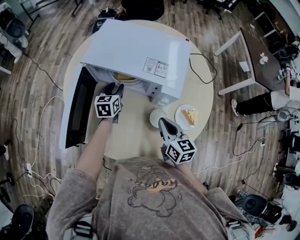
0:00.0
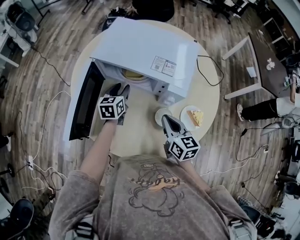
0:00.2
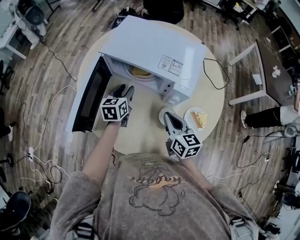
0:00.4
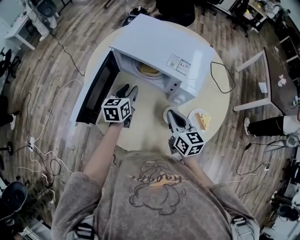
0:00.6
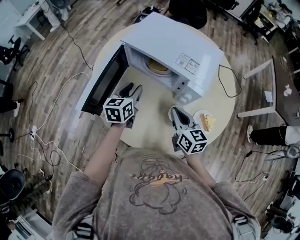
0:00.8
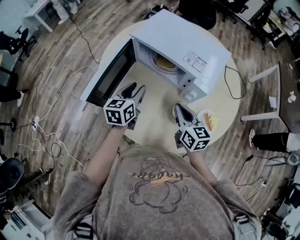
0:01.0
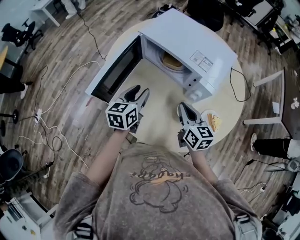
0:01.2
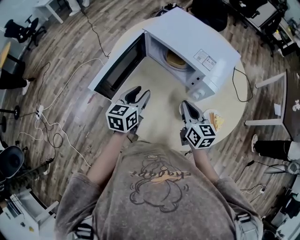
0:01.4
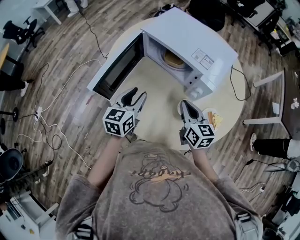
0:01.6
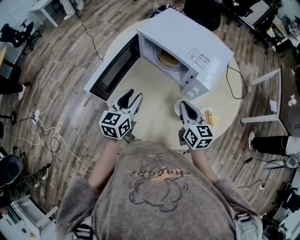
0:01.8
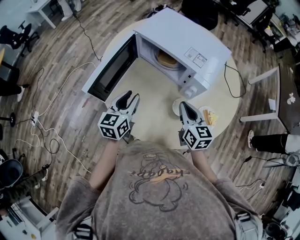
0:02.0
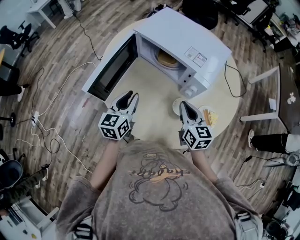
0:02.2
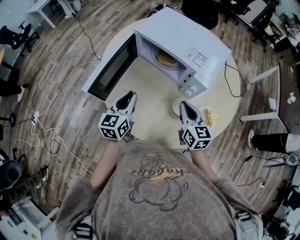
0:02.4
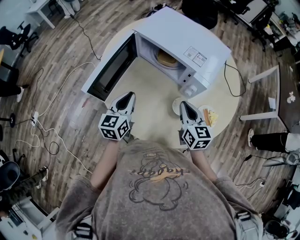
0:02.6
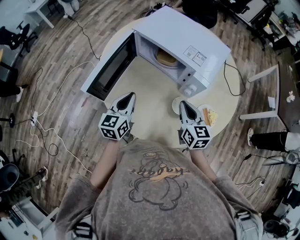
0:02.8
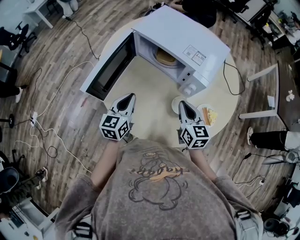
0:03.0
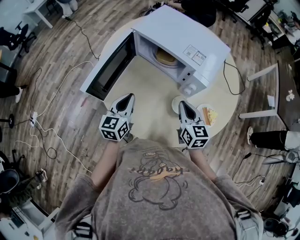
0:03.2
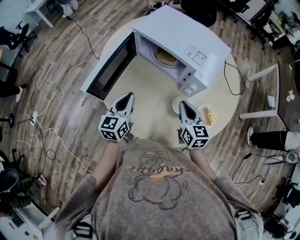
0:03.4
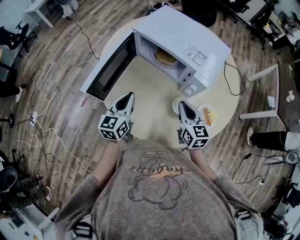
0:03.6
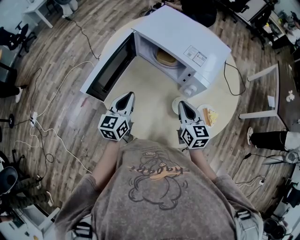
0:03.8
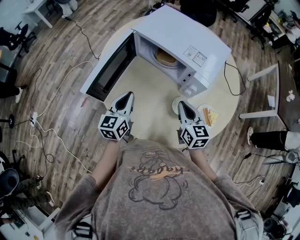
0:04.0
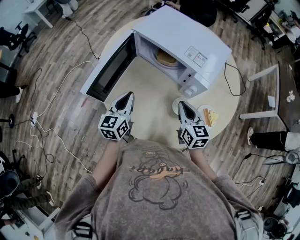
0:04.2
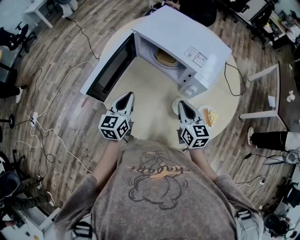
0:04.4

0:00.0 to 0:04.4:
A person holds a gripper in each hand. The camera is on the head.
0:00.0 to 0:01.4: The left gripper shifts approximately 20 cm backward and upward.
0:01.4 to 0:03.0: The left gripper closes.
0:03.0 to 0:04.4: The grippers stay close to where they were, moving slightly.

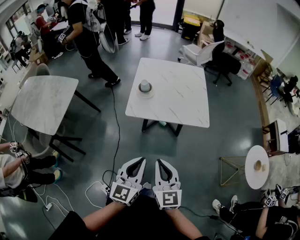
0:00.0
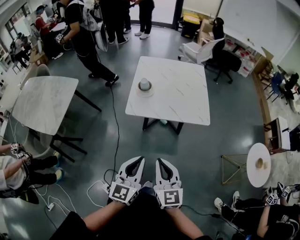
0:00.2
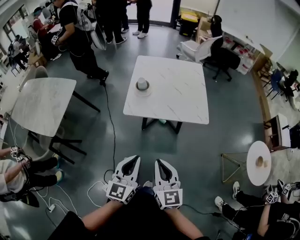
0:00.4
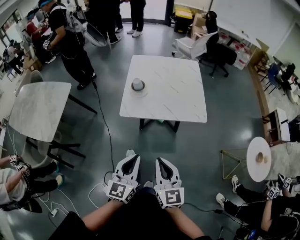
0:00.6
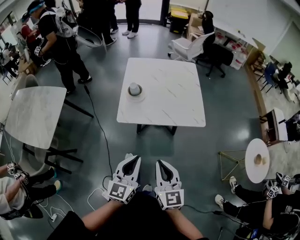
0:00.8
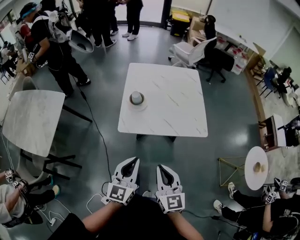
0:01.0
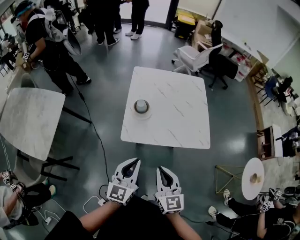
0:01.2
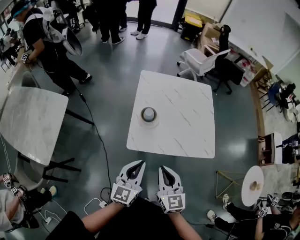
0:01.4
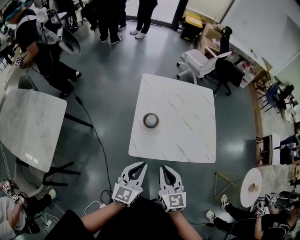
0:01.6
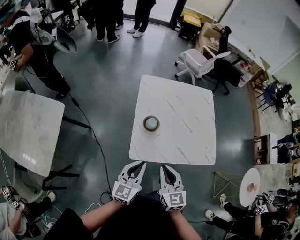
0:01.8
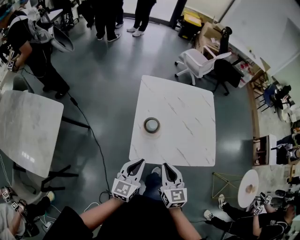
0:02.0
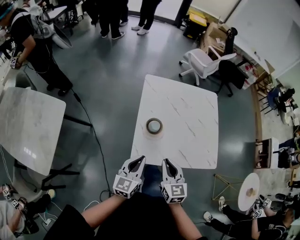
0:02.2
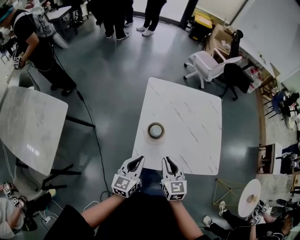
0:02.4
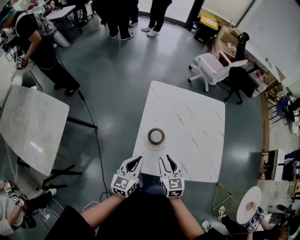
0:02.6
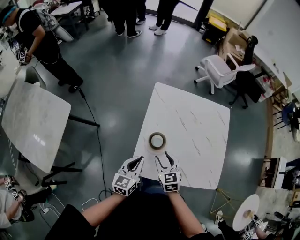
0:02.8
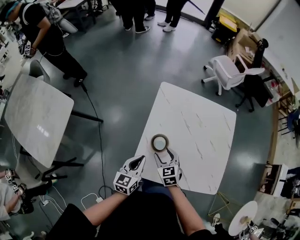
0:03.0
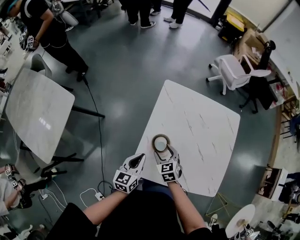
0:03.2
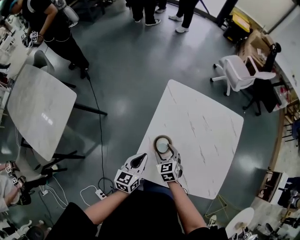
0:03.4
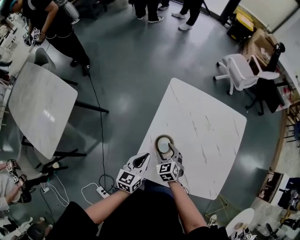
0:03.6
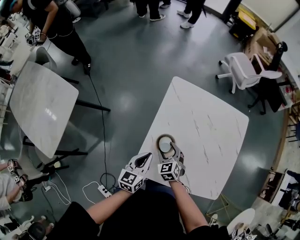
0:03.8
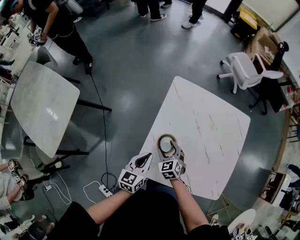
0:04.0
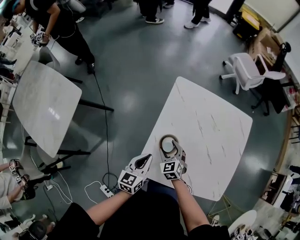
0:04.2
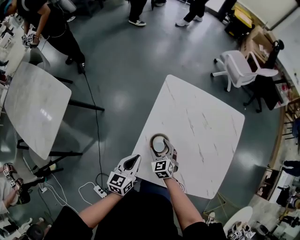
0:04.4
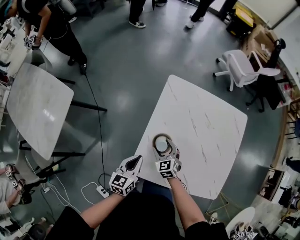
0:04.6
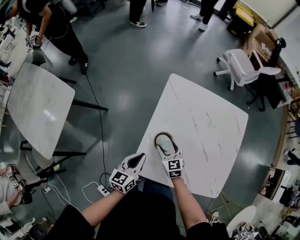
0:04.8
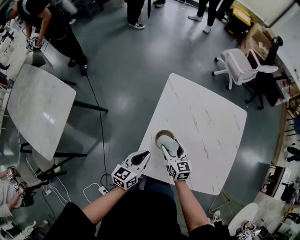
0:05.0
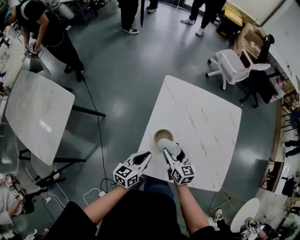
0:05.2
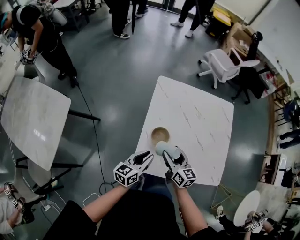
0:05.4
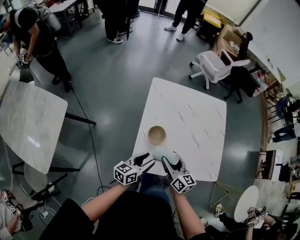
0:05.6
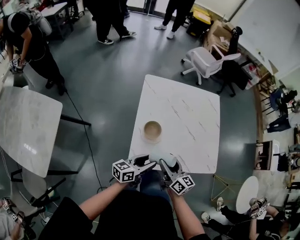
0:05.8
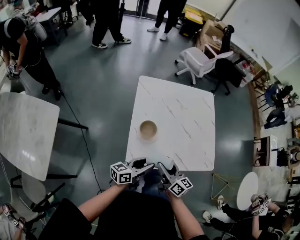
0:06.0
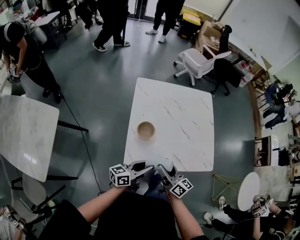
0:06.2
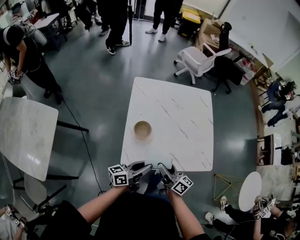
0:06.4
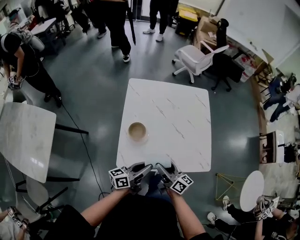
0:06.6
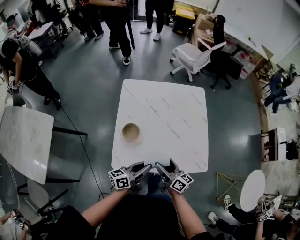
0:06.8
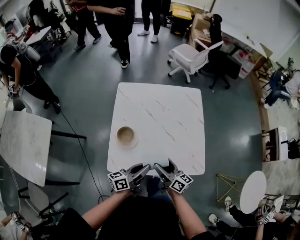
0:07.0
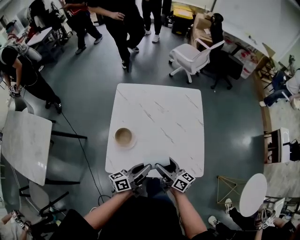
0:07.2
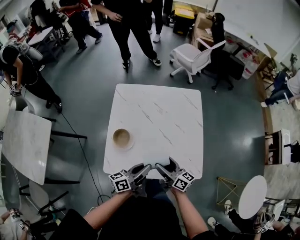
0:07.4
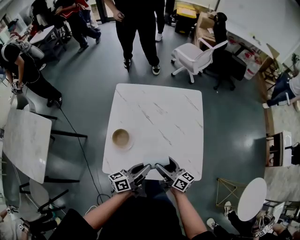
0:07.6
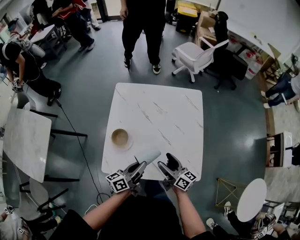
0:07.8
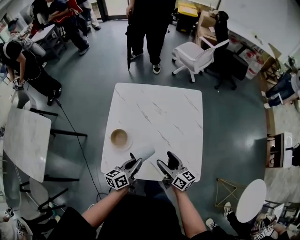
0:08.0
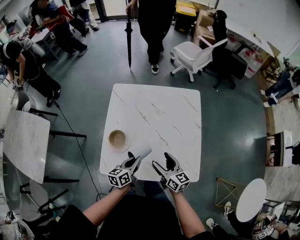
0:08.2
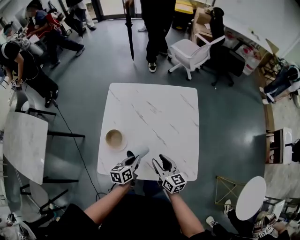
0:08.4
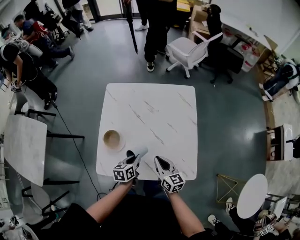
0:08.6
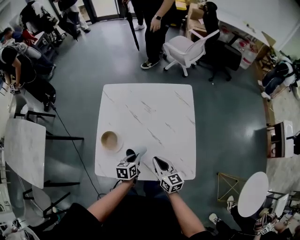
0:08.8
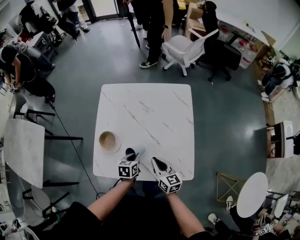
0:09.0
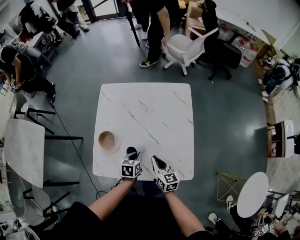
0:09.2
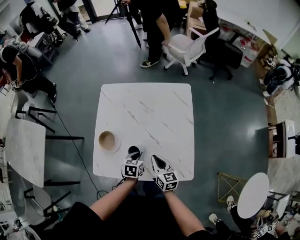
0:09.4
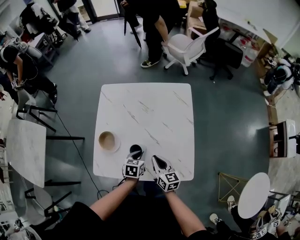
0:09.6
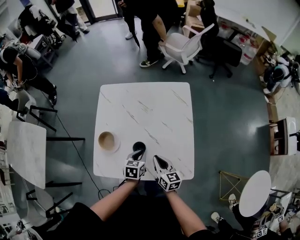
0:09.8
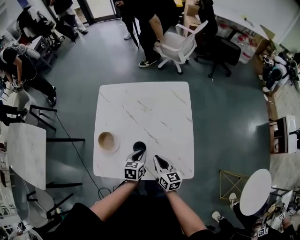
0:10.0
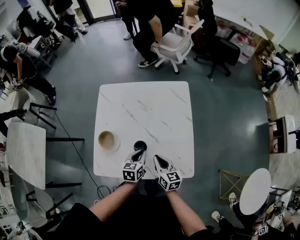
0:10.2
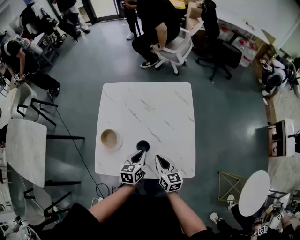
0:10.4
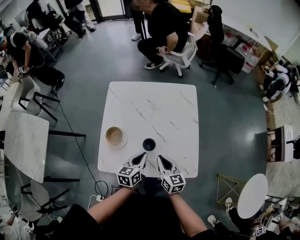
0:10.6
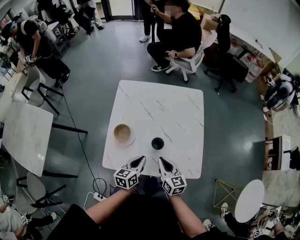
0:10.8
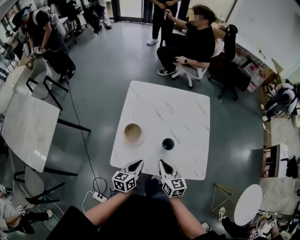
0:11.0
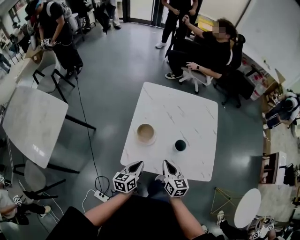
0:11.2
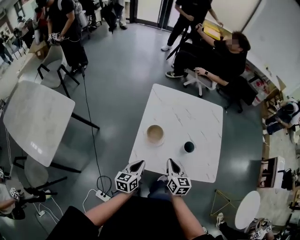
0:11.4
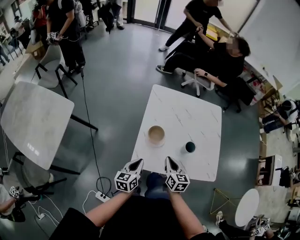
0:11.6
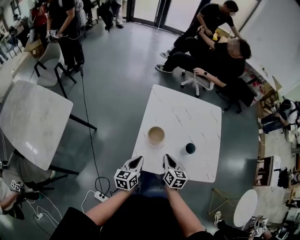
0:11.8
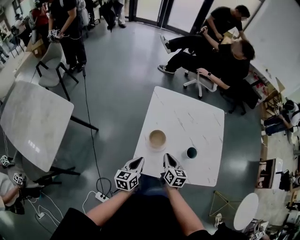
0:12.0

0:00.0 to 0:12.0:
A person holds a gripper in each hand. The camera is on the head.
0:00.0 to 0:01.6: Both grippers travel together forward, some 30 cm.
0:01.6 to 0:03.0: Both grippers move forward and downward, approximately 30 cm. The left gripper rotates roughly 20 degrees; the right gripper turns by roughly 30 degrees, and opens up.
0:03.0 to 0:04.4: The right gripper heads downward, covering some 10 cm.
0:04.4 to 0:06.0: The left gripper changes place by some 15 cm, swivels about 50 degrees, and opens up. Meanwhile the right gripper changes place by roughly 25 cm, and rolls clockwise, seen from behind, by some 60 degrees.
0:06.0 to 0:07.6: The two grippers go some 20 cm to the right and forward. The left gripper closes its fingers.
0:07.6 to 0:09.0: The left gripper shifts approximately 15 cm downward and forward, and tilts its fingers roughly 50 degrees downward; the right gripper moves downward, approximately 5 cm, swivels approximately 30 degrees, and closes.
0:09.0 to 0:10.4: The left gripper travels upward by about 5 cm.
0:10.4 to 0:12.0: The two grippers go roughly 30 cm to the left.

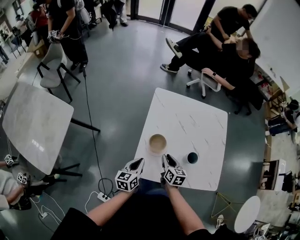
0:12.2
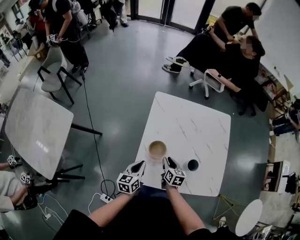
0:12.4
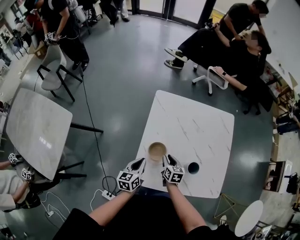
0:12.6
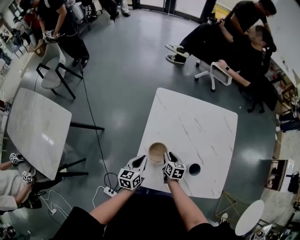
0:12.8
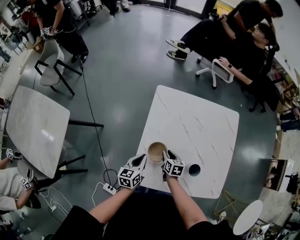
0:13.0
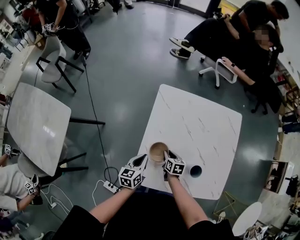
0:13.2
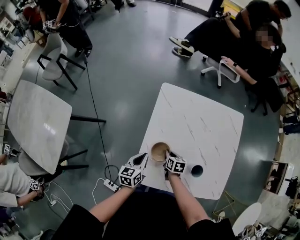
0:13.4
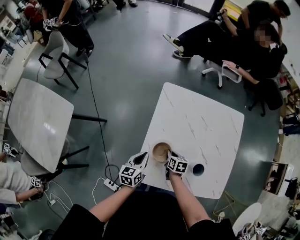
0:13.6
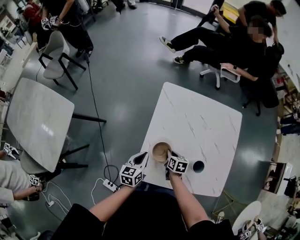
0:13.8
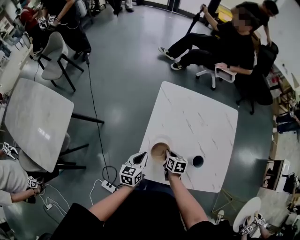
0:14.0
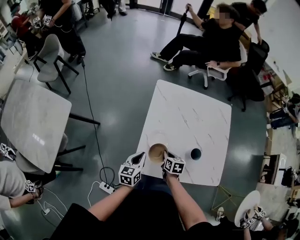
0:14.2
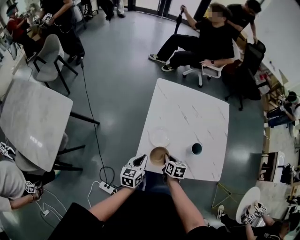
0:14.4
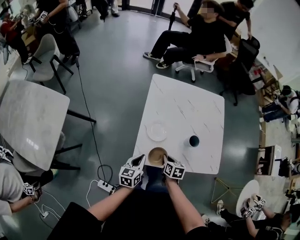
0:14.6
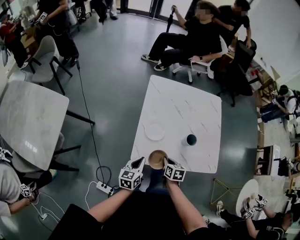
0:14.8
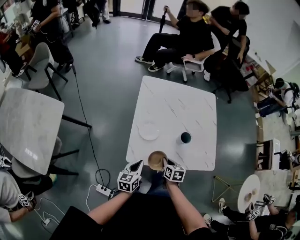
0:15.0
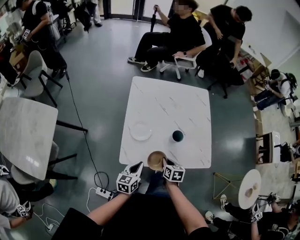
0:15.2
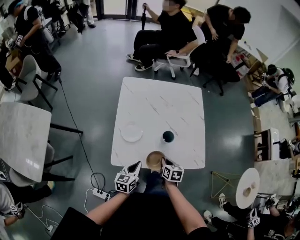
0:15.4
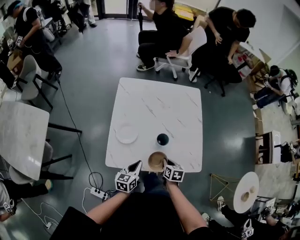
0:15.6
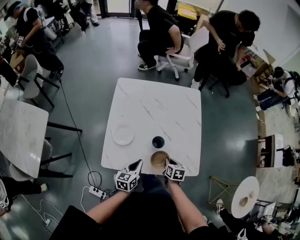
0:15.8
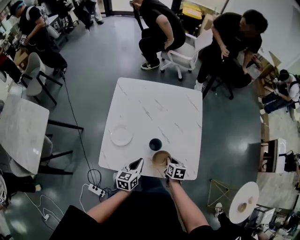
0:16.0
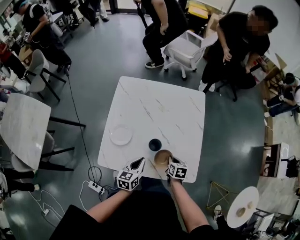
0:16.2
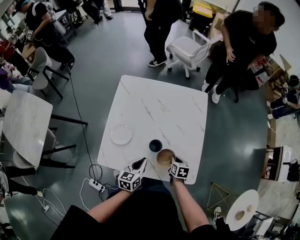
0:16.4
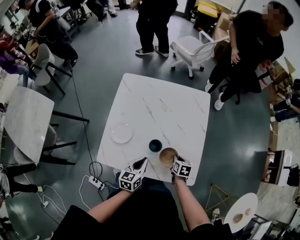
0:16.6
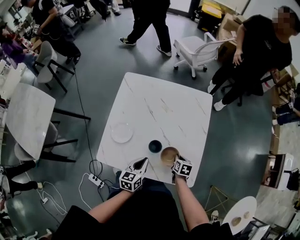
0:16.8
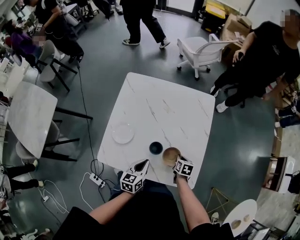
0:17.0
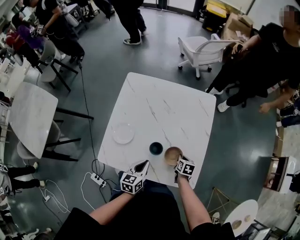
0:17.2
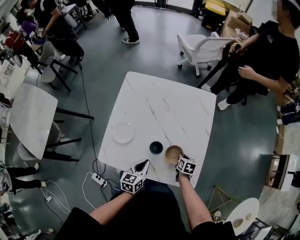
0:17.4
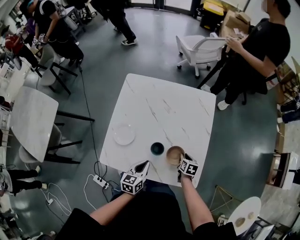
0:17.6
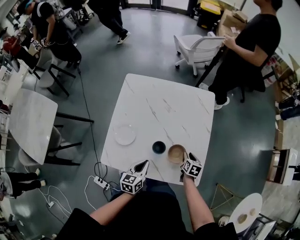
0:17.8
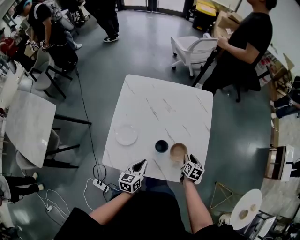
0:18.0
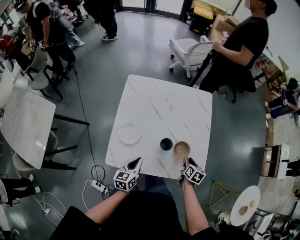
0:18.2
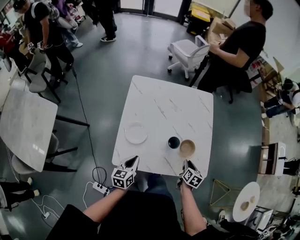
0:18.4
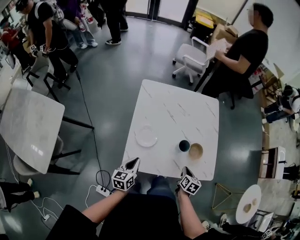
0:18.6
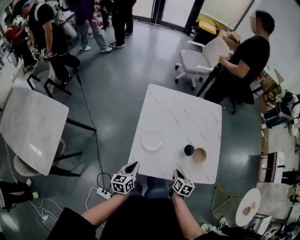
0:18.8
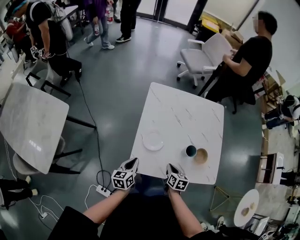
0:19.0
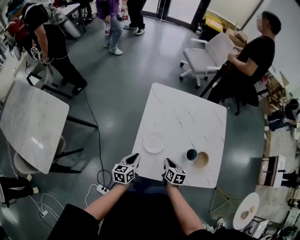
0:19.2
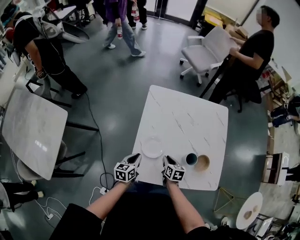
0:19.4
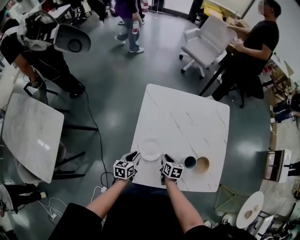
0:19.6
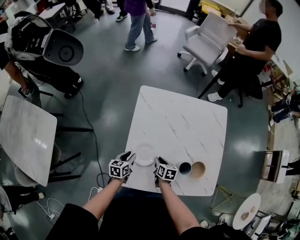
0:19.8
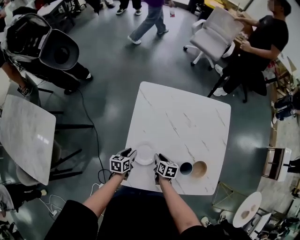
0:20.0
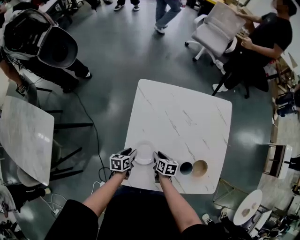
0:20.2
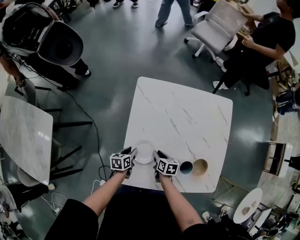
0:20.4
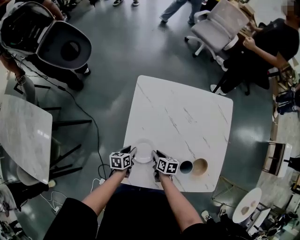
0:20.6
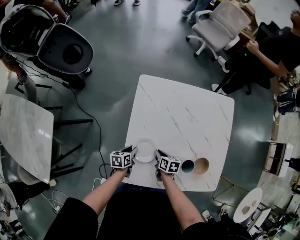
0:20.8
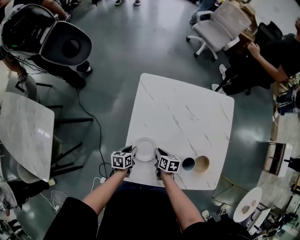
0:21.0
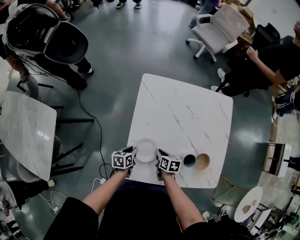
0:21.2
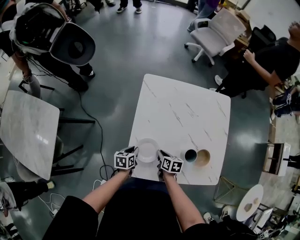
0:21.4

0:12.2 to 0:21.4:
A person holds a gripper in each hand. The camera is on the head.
0:12.2 to 0:13.8: The left gripper shifts roughly 10 cm forward, while the right gripper shifts about 15 cm downward and forward, and changes its angle by about 20 degrees.
0:13.8 to 0:15.2: The two grippers go approximately 20 cm backward and to the right.
0:15.2 to 0:16.8: The grippers both shift to the right and forward by approximately 25 cm.
0:16.8 to 0:18.4: The left gripper moves to the left, about 15 cm, while the right gripper shifts about 10 cm backward and upward, and swivels approximately 20 degrees.
0:18.4 to 0:19.8: The right gripper goes about 30 cm to the left and forward, and changes its angle by some 20 degrees, while the left gripper goes approximately 20 cm forward, to the left and downward, and opens up.
0:19.8 to 0:21.4: The grippers make only small movements.
